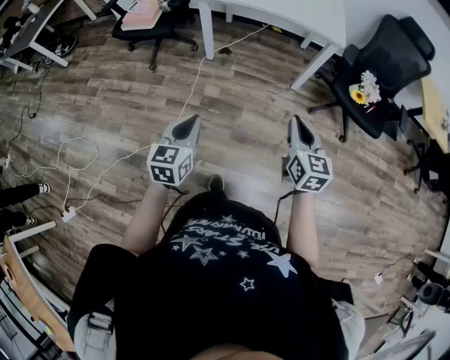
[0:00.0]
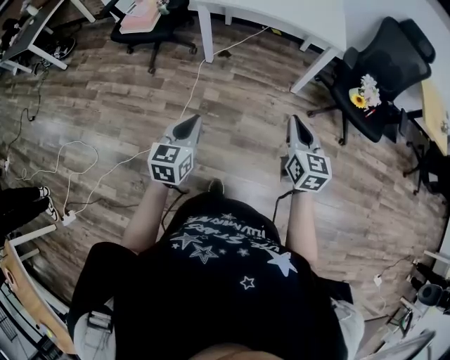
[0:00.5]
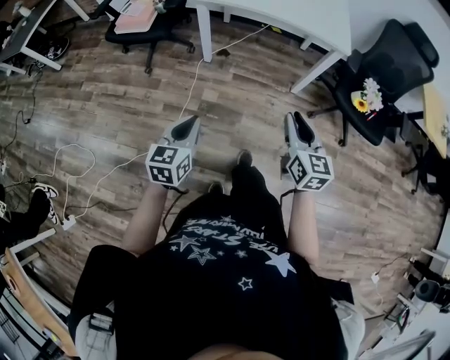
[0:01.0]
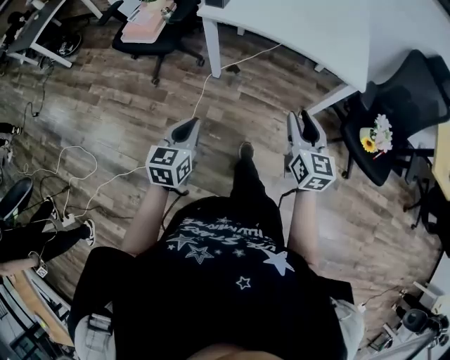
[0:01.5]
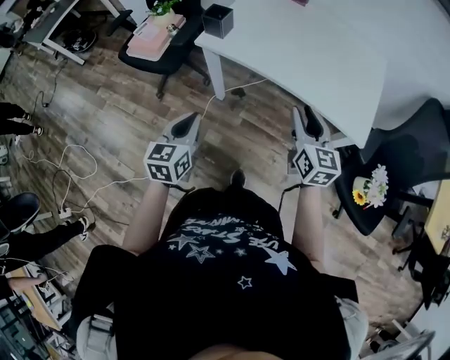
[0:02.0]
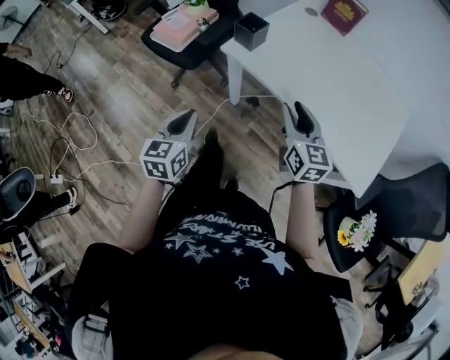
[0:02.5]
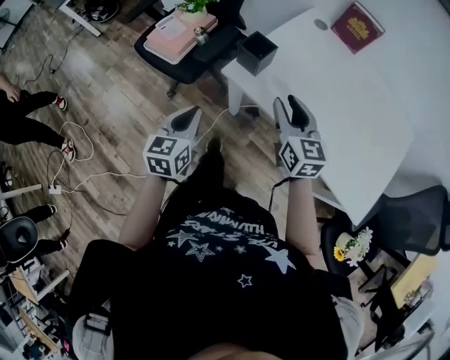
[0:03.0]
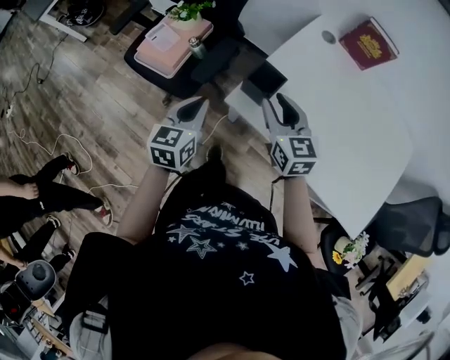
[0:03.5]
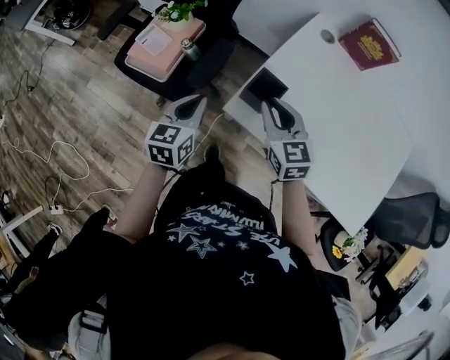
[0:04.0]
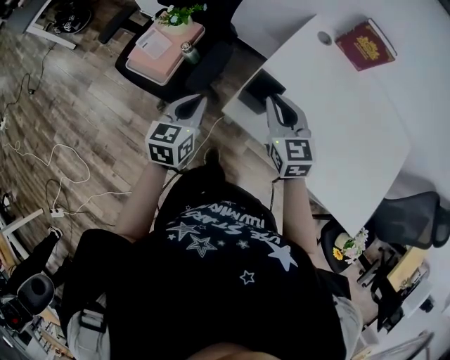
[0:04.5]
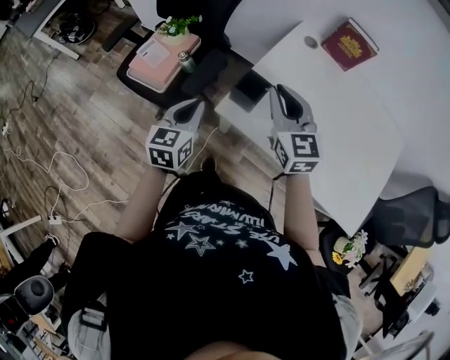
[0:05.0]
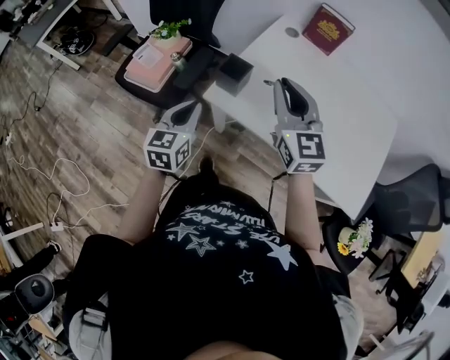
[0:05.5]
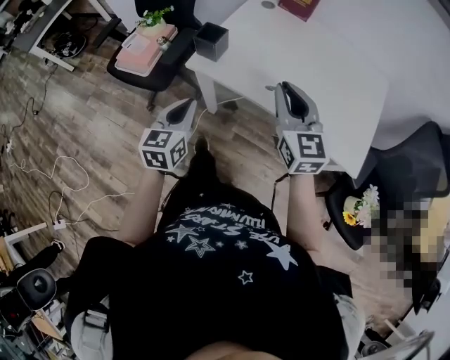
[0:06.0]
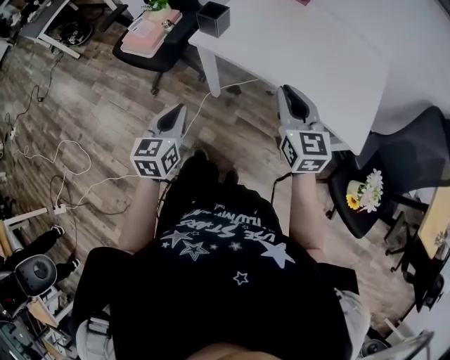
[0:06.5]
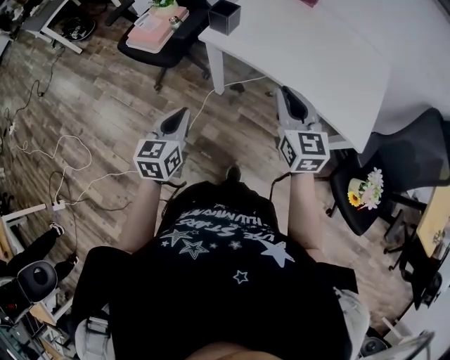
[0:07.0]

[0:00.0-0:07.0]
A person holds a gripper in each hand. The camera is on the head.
0:00.0 to 0:02.0: The pair of grippers is taken forward, about 40 cm. The right gripper opens.
0:02.0 to 0:03.5: The left gripper heads forward, covering some 35 cm. Meanwhile the right gripper shifts about 40 cm forward and to the left, and turns by about 20 degrees.
0:03.5 to 0:05.0: The right gripper travels upward by about 10 cm, and closes up.
0:05.0 to 0:07.0: Both grippers travel together backward, about 35 cm.

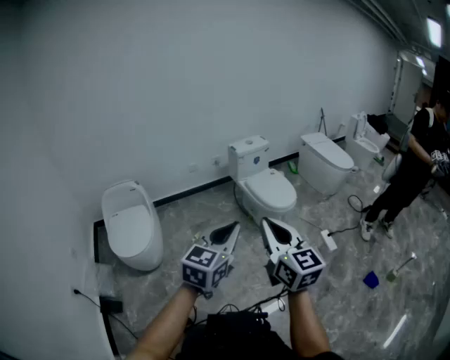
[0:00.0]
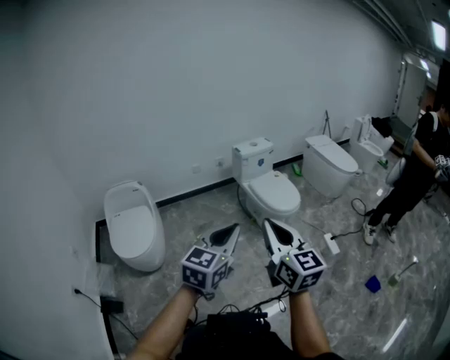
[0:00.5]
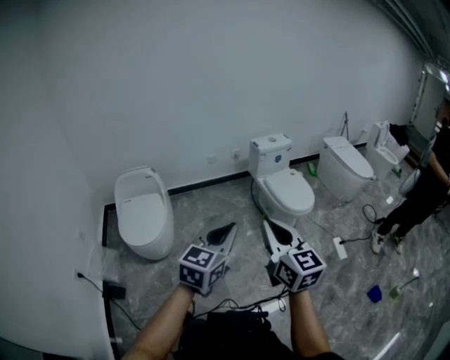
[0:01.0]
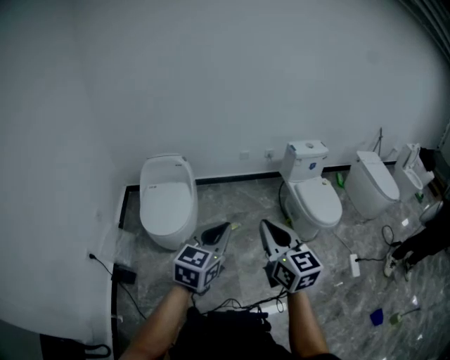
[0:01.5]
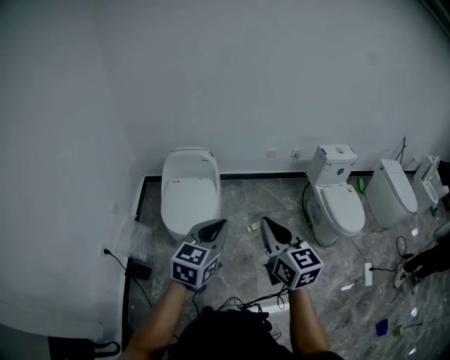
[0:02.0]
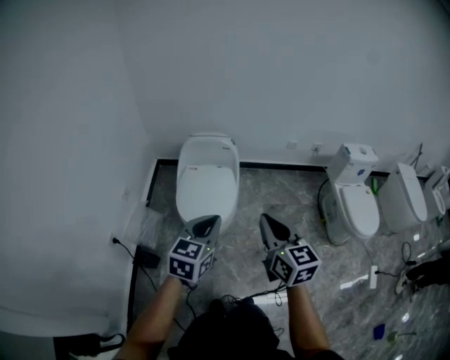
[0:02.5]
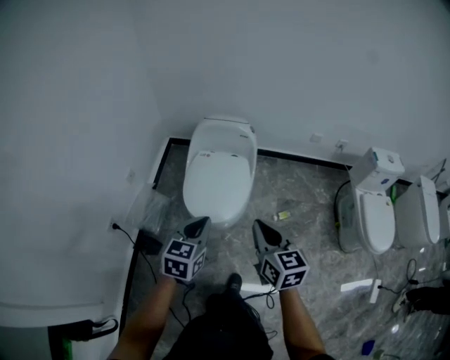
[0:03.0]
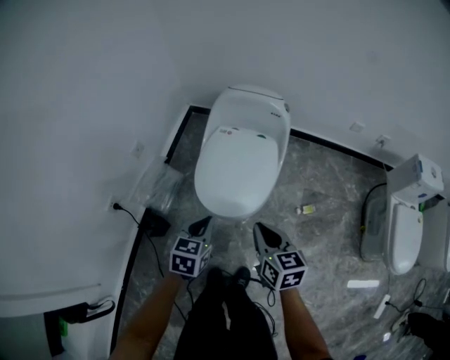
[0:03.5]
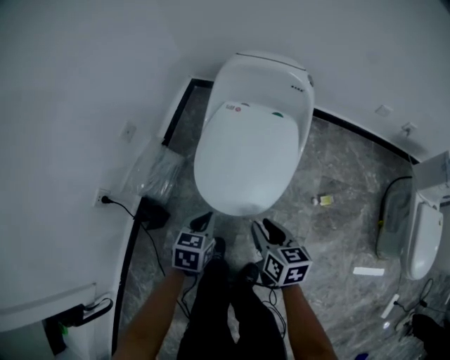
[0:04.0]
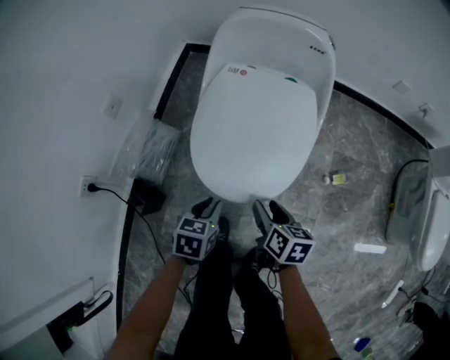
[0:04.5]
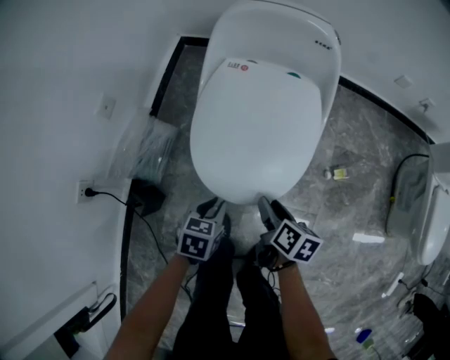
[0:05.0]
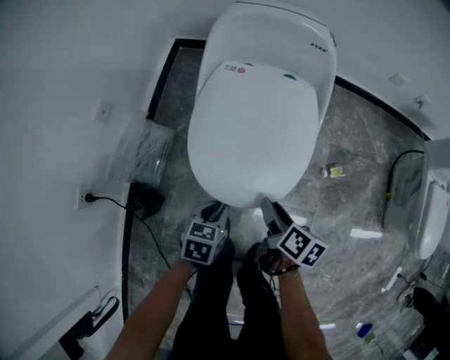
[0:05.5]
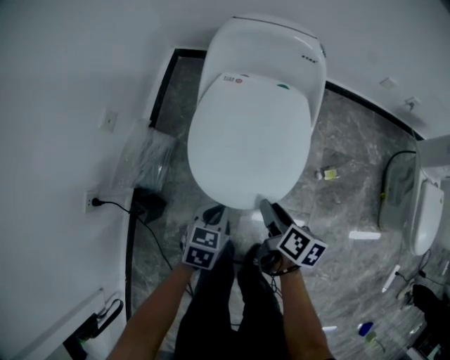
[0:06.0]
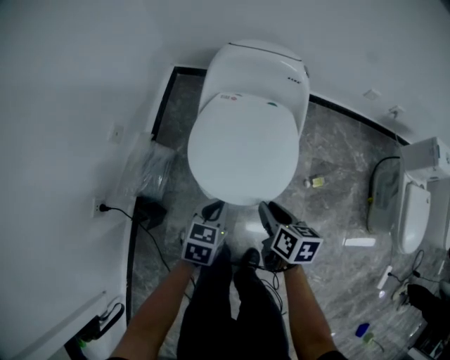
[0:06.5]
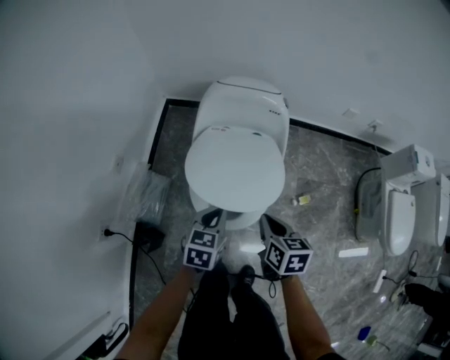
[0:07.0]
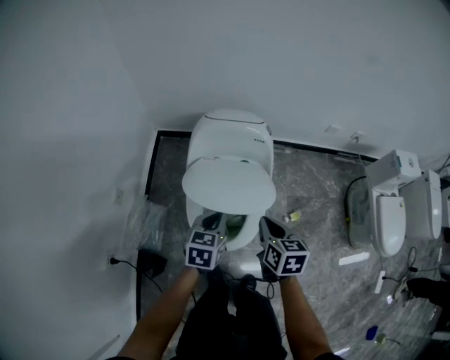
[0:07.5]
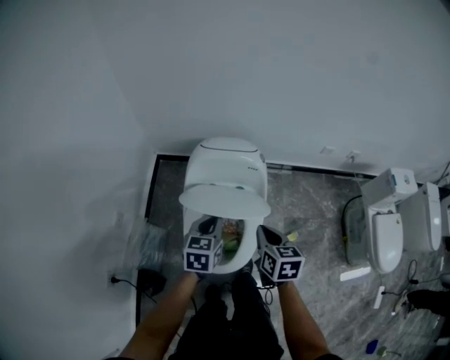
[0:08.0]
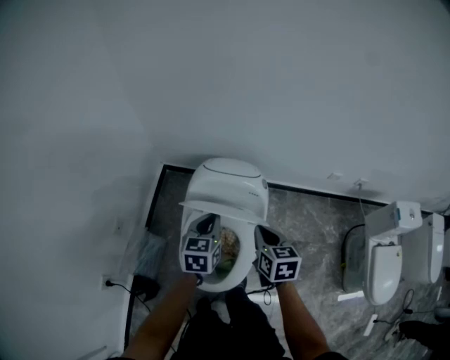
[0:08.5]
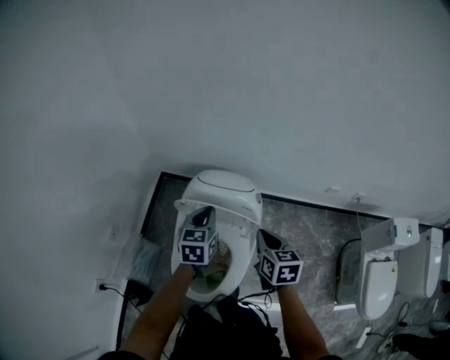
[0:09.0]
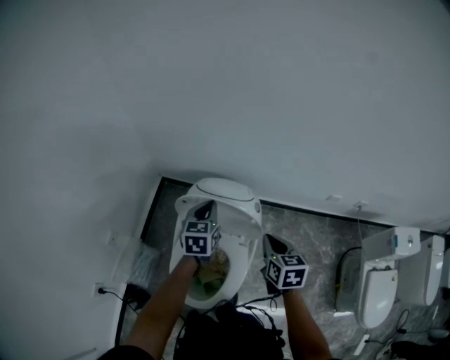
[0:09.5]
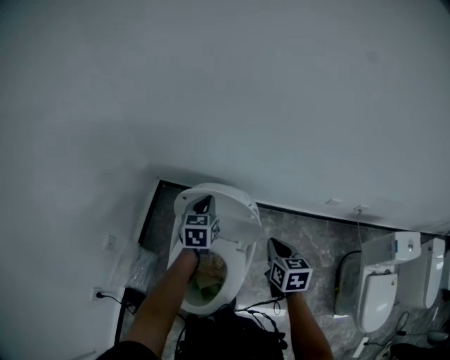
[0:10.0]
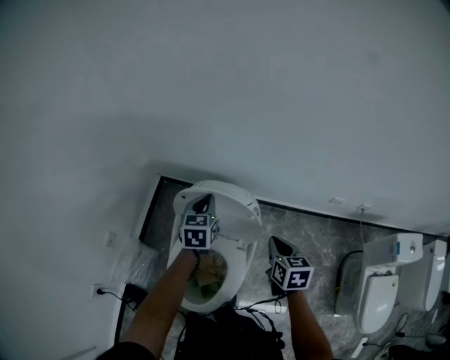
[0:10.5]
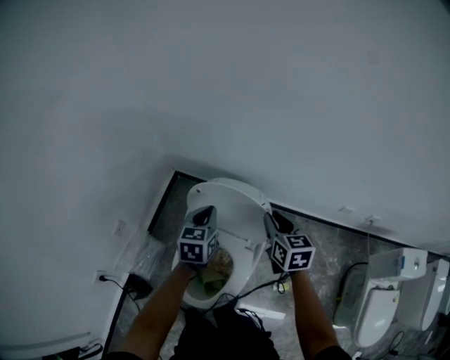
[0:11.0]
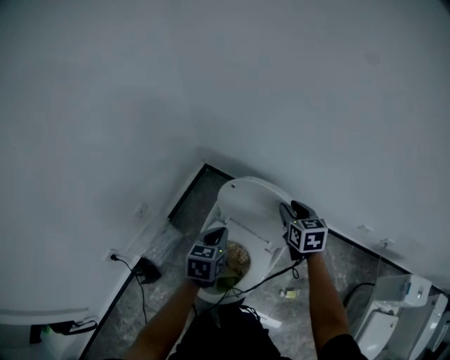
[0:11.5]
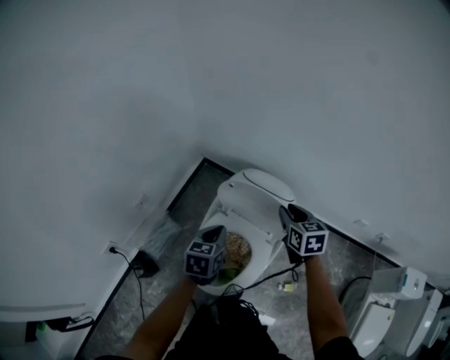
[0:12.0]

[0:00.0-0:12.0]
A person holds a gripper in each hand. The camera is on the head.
0:00.0 to 0:02.0: The right gripper goes about 30 cm to the left and forward, and rotates some 20 degrees. The left gripper travels to the left by roughly 35 cm, and swivels some 30 degrees.
0:02.0 to 0:04.0: The grippers both shift downward by about 40 cm. The right gripper changes its angle by approximately 40 degrees, and opens up; the left gripper points its fingers about 30 degrees further downward.
0:04.0 to 0:06.0: The right gripper rotates roughly 30 degrees, and opens up.
0:06.0 to 0:08.0: The two grippers go about 30 cm upward and forward. The right gripper changes its angle by about 40 degrees, and closes its fingers.
0:08.0 to 0:10.0: The left gripper goes approximately 25 cm forward; the right gripper moves forward and to the right, approximately 20 cm.
0:10.0 to 0:12.0: The right gripper goes approximately 10 cm to the left and forward, changes its angle by about 20 degrees, and opens its fingers. Meanwhile the left gripper is displaced backward and to the left by roughly 20 cm.

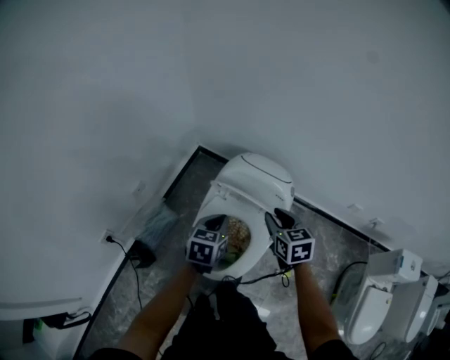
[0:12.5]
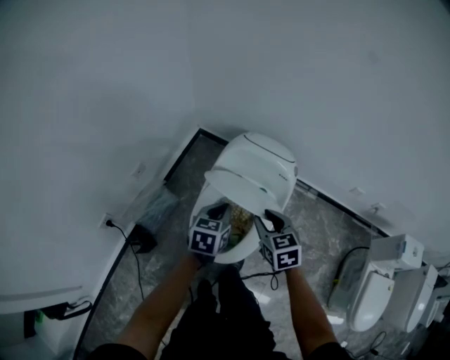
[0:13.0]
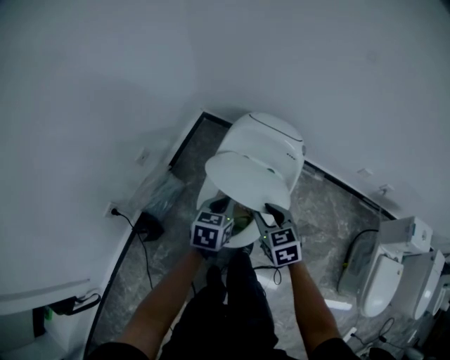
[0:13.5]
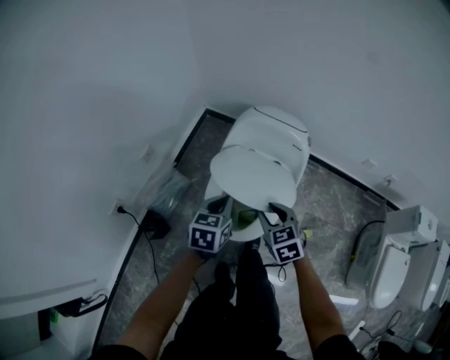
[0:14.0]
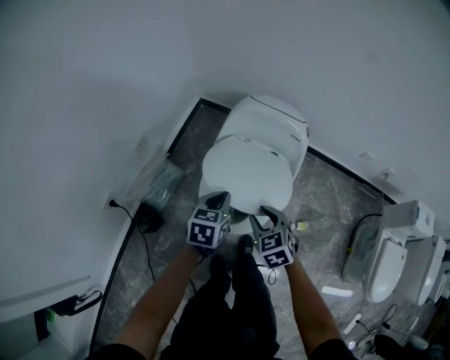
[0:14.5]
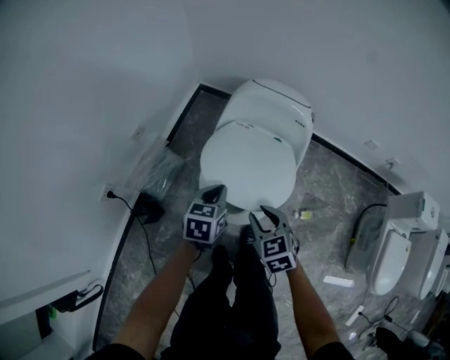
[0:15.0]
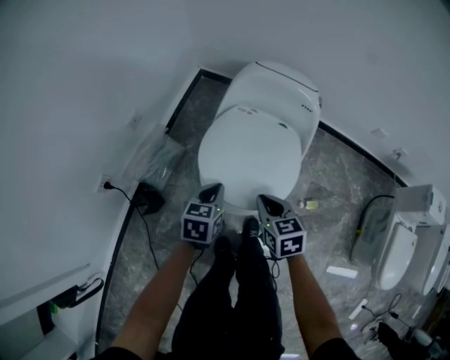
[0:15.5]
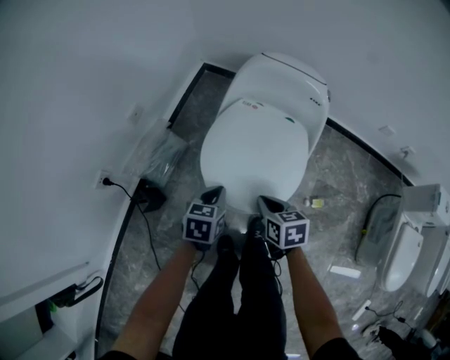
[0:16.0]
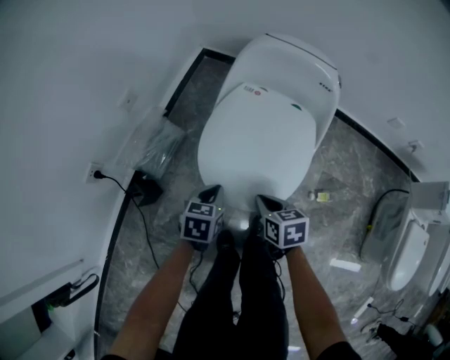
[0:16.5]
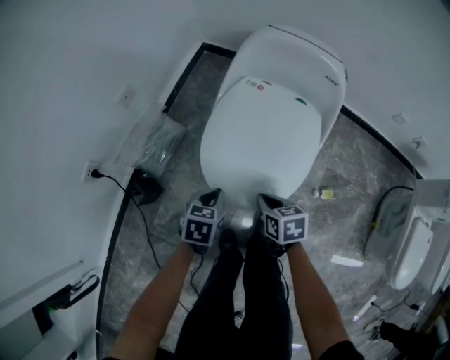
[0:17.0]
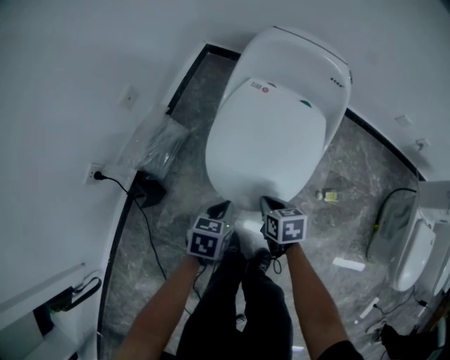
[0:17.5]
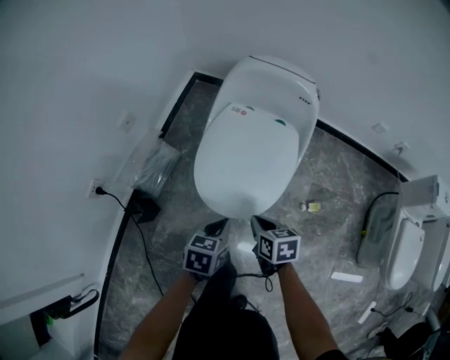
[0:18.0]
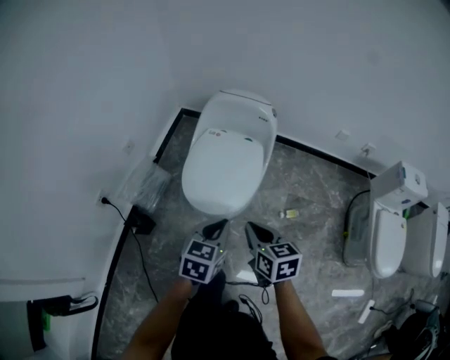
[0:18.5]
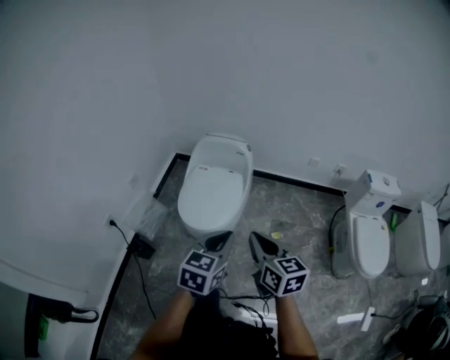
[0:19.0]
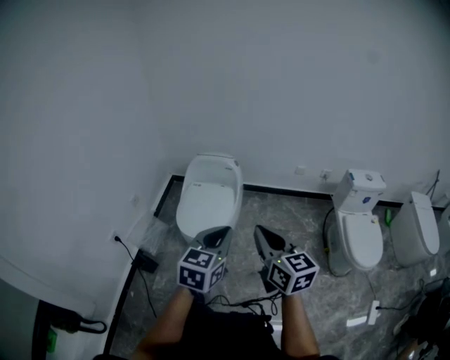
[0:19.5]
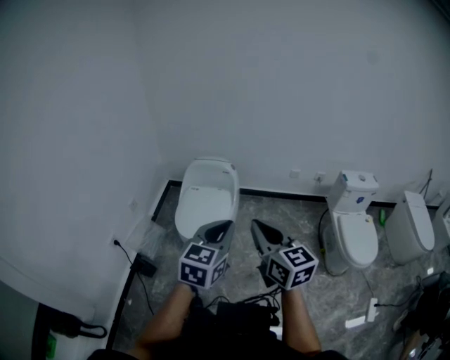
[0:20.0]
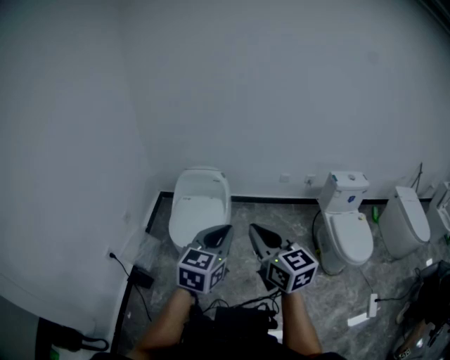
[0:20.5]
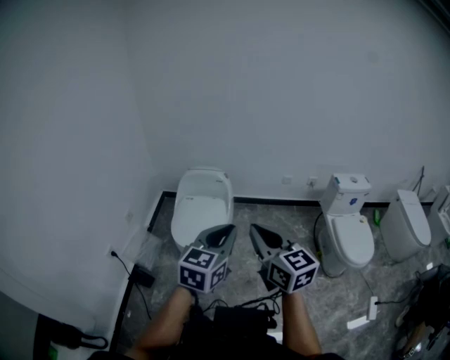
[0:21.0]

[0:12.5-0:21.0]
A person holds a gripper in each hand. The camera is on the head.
0:12.5 to 0:14.5: The left gripper goes approximately 10 cm backward and downward; the right gripper goes some 20 cm backward, downward and to the left.
0:14.5 to 0:16.5: The two grippers go roughly 15 cm downward. The right gripper swivels about 30 degrees, and closes up.
0:16.5 to 0:19.0: The right gripper goes about 40 cm upward and backward, and tilts its fingers approximately 30 degrees upward. Meanwhile the left gripper travels upward, backward and to the right by approximately 50 cm, and turns by some 40 degrees.
0:19.0 to 0:21.0: Both grippers move upward and backward, roughly 15 cm.
